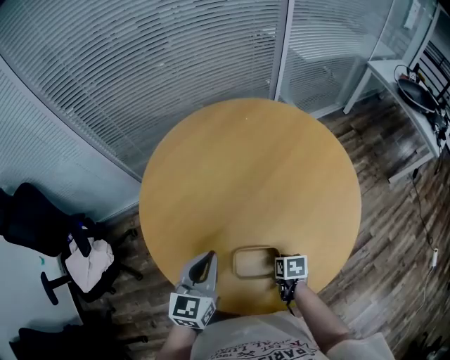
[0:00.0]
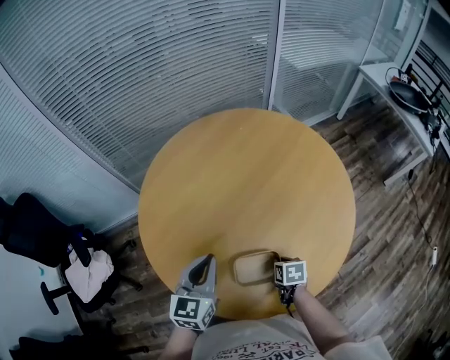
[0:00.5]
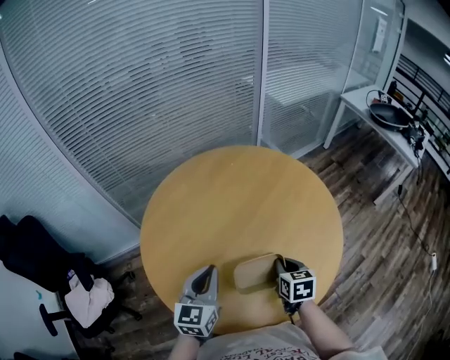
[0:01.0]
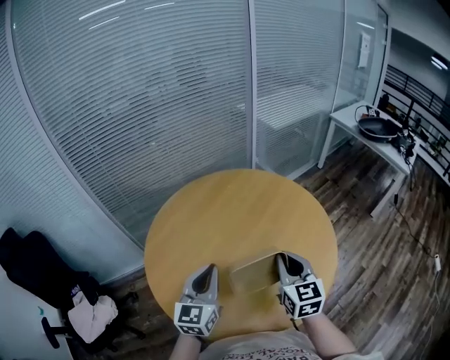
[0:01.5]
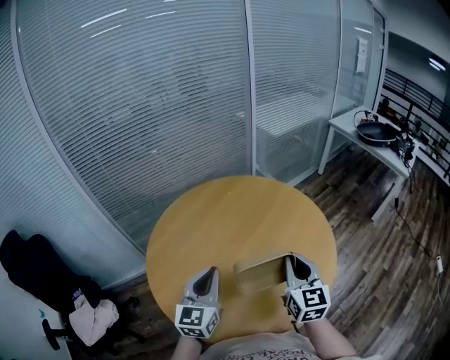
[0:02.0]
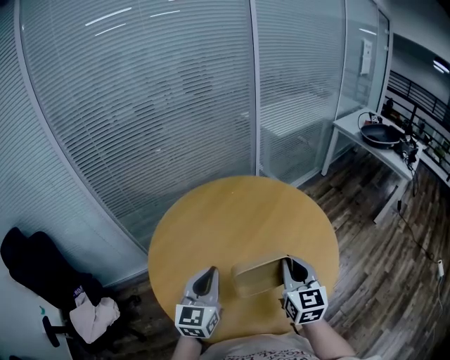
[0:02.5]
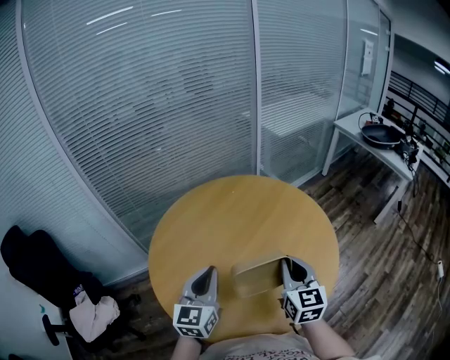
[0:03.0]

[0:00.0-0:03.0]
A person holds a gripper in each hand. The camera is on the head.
0:00.0 to 0:01.5: The left gripper heads upward, covering approximately 10 cm. Meanwhile the right gripper is displaced upward by about 35 cm, and tilts its fingers approximately 50 degrees upward.
0:01.5 to 0:03.0: The grippers stay close to where they were, moving slightly.

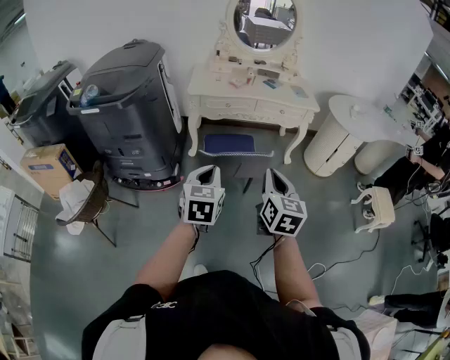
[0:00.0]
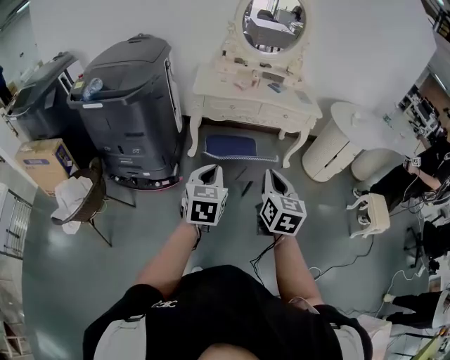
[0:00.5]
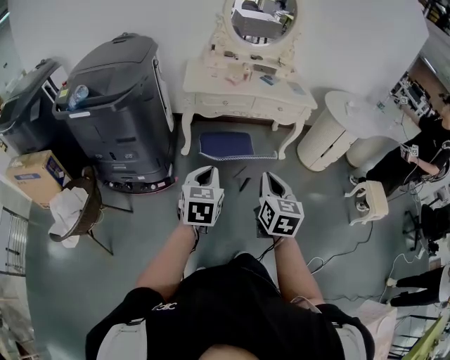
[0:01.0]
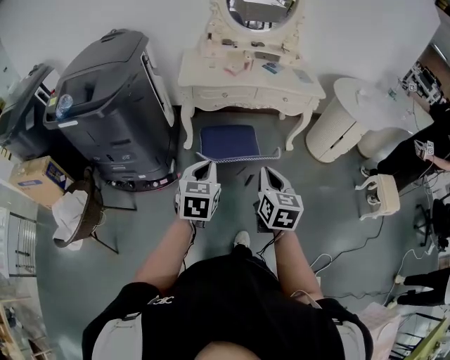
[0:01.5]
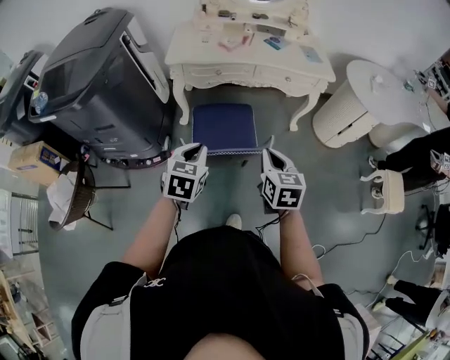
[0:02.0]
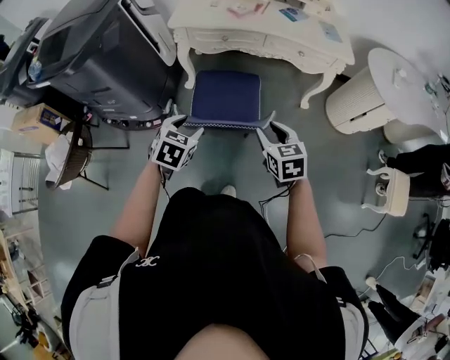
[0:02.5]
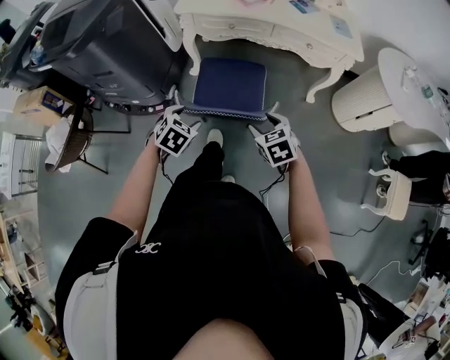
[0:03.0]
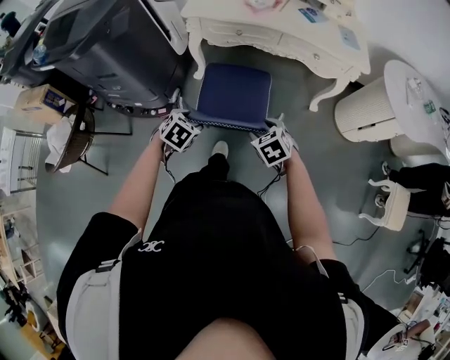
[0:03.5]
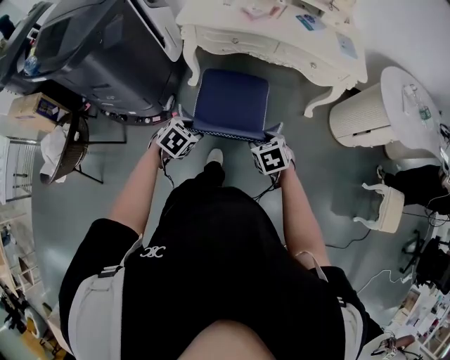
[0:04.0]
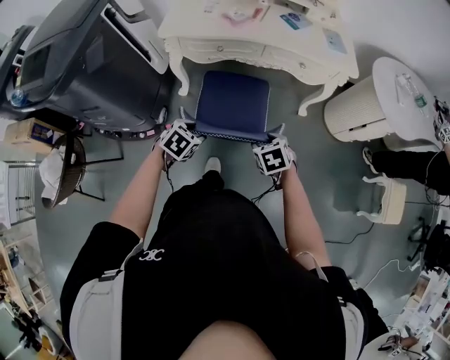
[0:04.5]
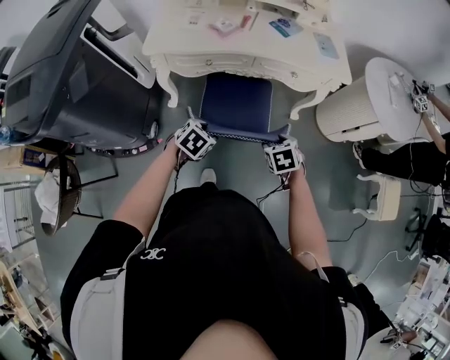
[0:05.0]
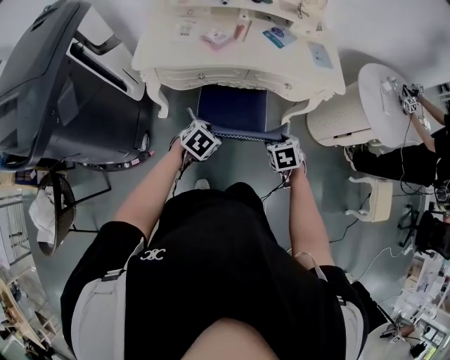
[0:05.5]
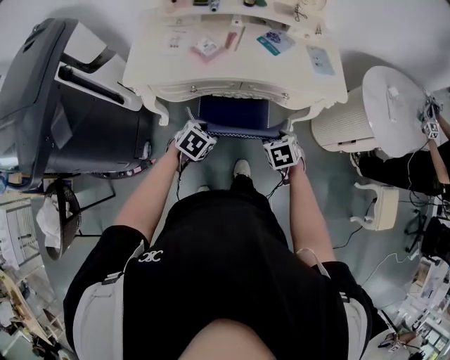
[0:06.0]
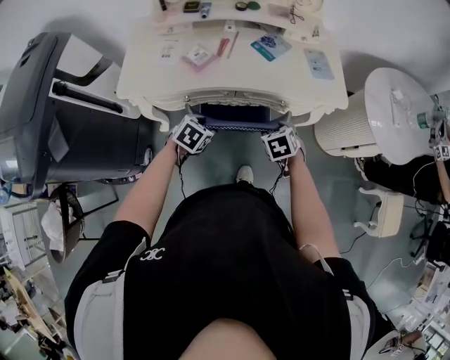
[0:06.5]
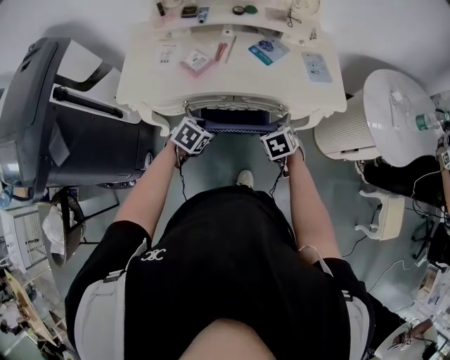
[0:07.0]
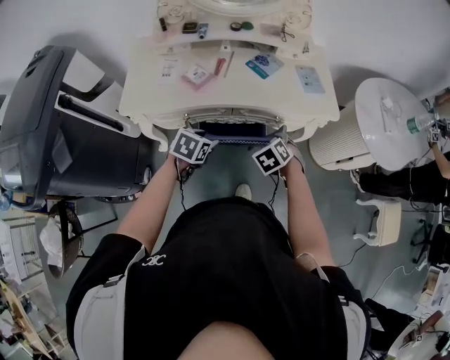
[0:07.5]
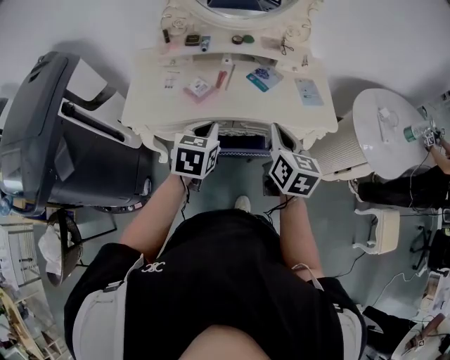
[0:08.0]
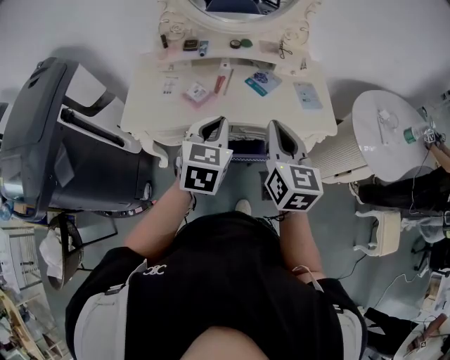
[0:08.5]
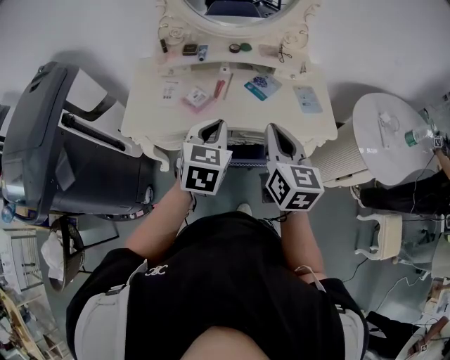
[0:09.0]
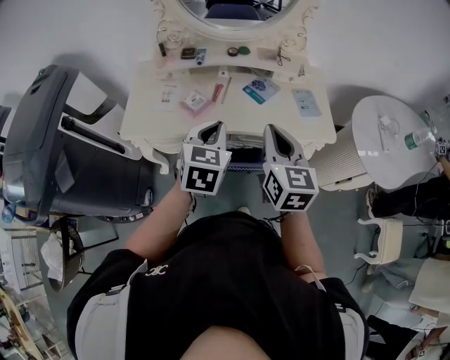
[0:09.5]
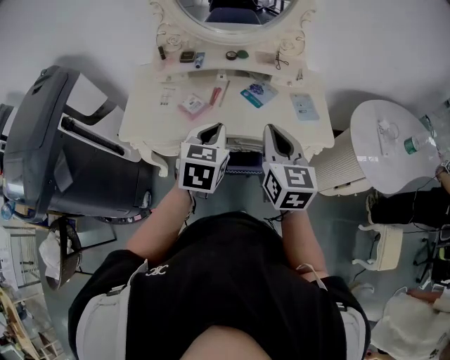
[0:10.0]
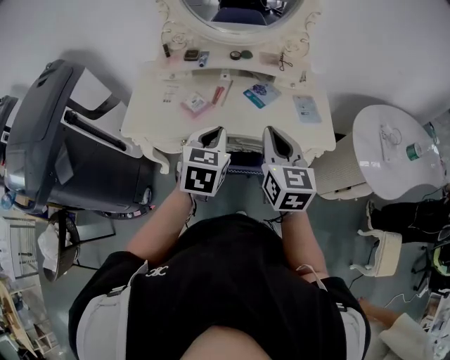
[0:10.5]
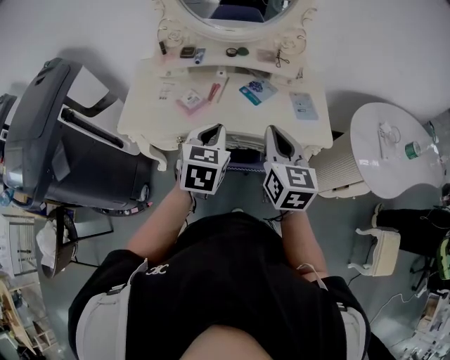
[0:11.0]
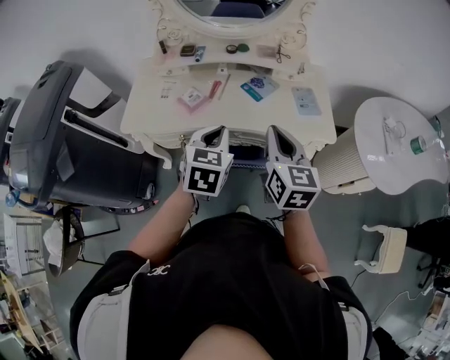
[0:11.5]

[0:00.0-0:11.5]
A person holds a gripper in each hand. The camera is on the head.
0:00.0 to 0:02.0: Both grippers move forward and downward, about 25 cm.
0:02.0 to 0:04.0: The left gripper goes approximately 15 cm downward, changes its angle by approximately 30 degrees, and opens up. Meanwhile the right gripper moves downward and forward, some 20 cm, rotates approximately 40 degrees, and opens.
0:04.0 to 0:06.0: The two grippers go some 30 cm forward.
0:06.0 to 0:07.5: The grippers both shift forward by some 5 cm.
0:07.5 to 0:09.5: The grippers both shift upward by some 25 cm. The right gripper tilts its fingers about 50 degrees upward, and closes. The left gripper changes its angle by approximately 30 degrees, and closes up.
0:09.5 to 0:11.5: There are only small adjustments of the grippers.

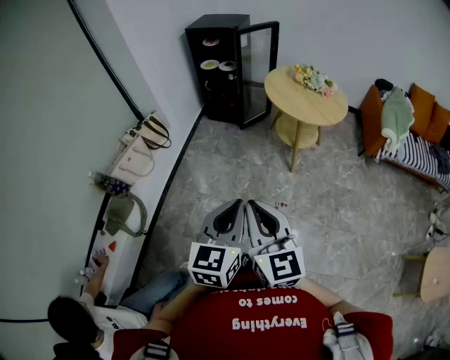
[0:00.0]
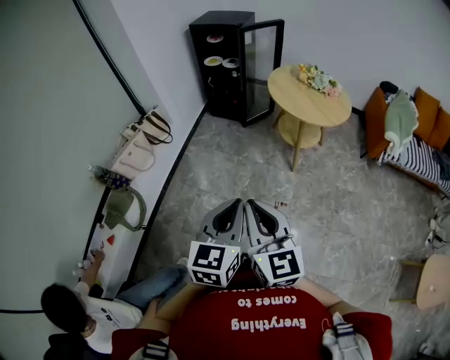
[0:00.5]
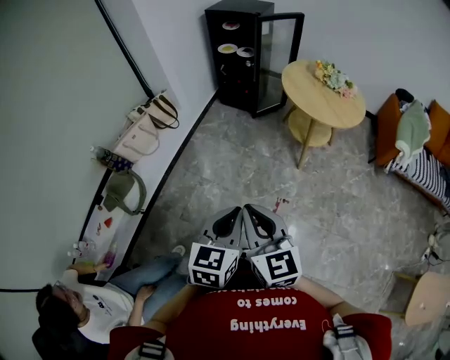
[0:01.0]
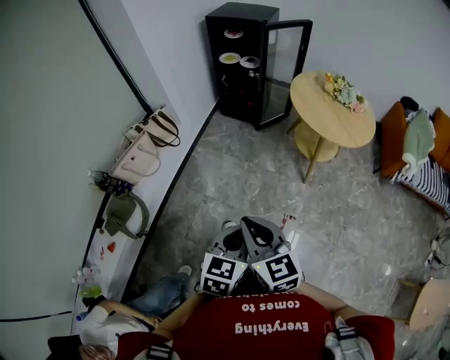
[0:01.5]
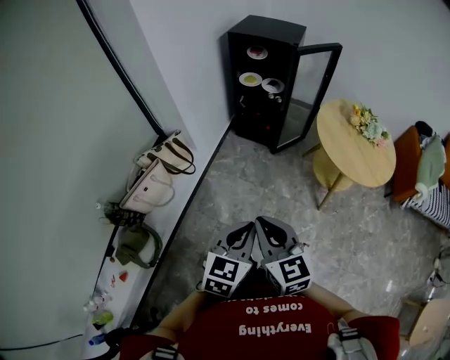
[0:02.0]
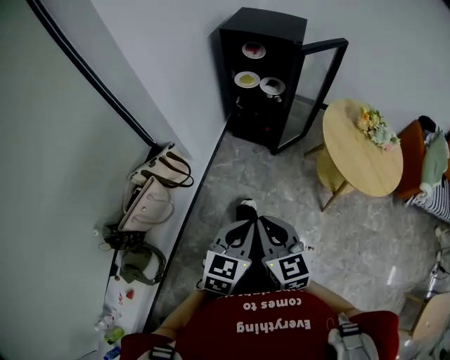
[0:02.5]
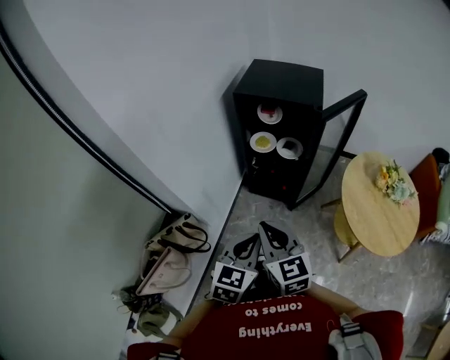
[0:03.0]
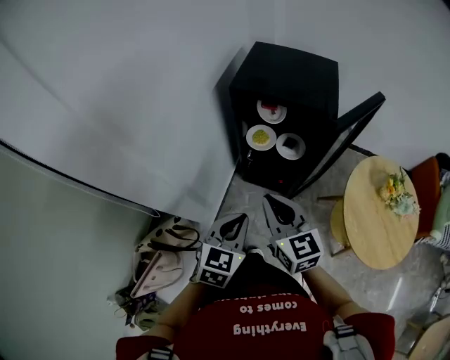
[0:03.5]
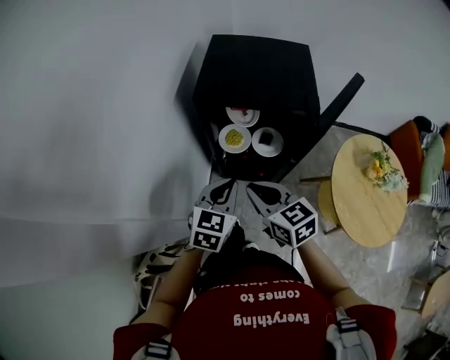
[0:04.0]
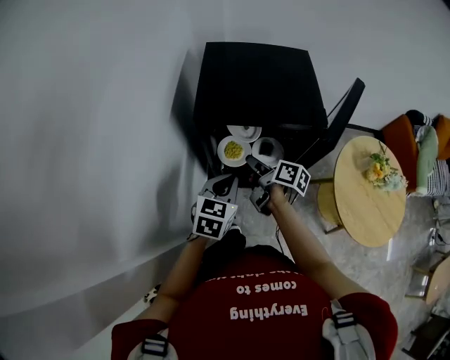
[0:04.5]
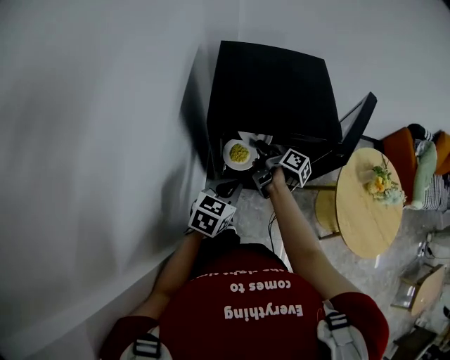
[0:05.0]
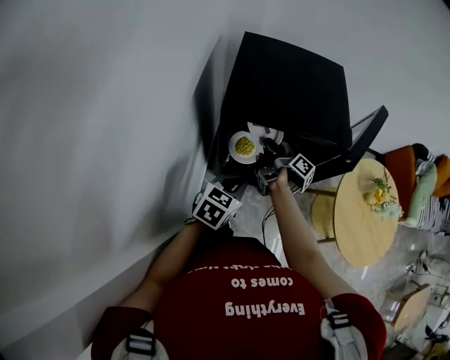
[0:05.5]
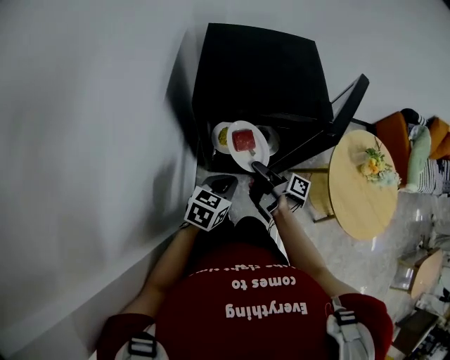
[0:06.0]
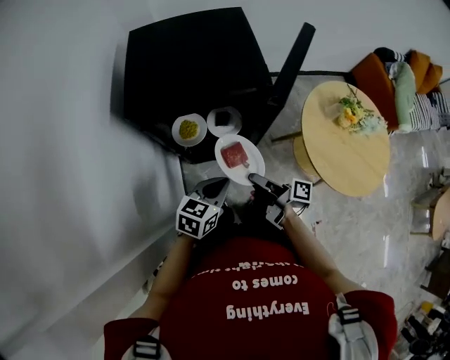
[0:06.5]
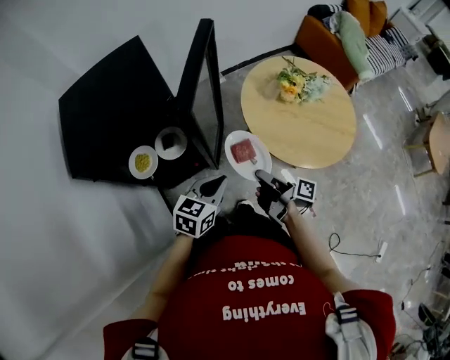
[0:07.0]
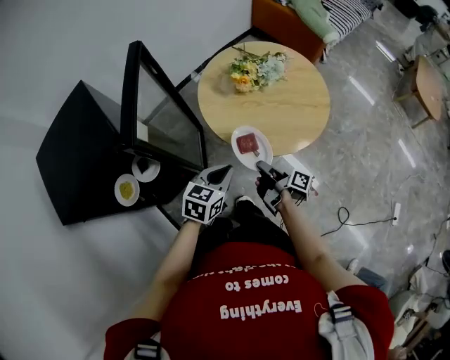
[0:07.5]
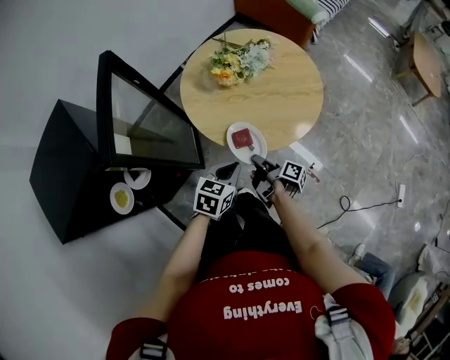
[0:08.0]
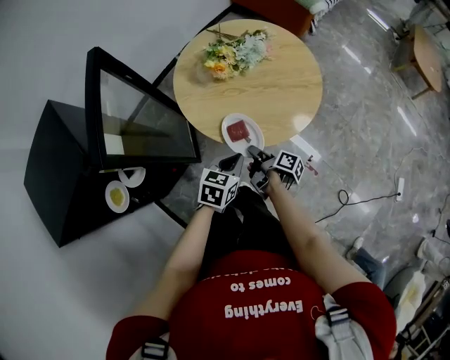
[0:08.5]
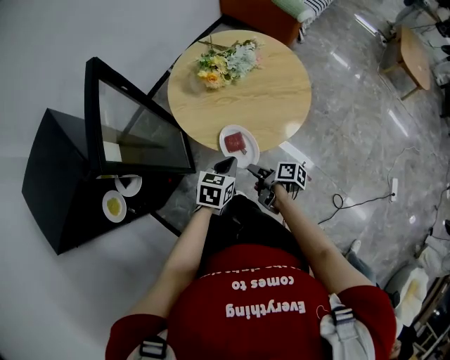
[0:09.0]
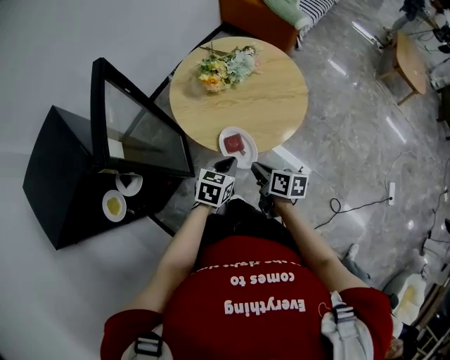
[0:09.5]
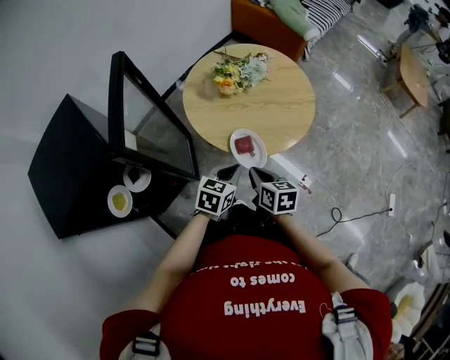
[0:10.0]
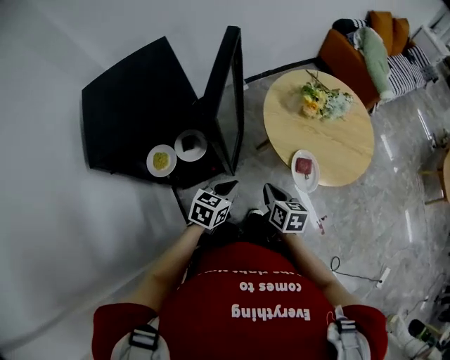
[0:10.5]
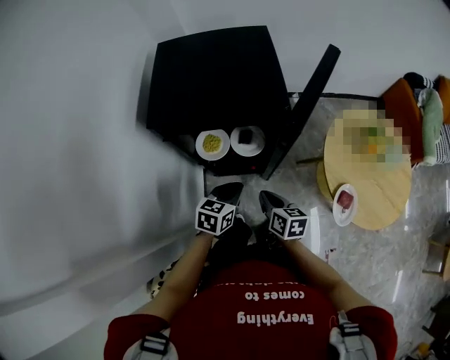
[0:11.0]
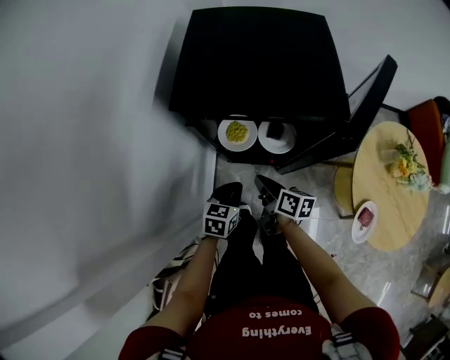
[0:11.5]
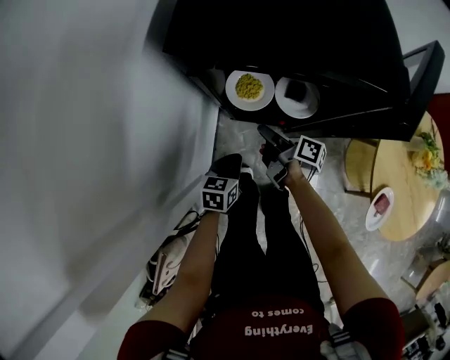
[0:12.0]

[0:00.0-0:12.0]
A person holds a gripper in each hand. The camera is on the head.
0:00.0 to 0:02.0: The left gripper ends up some 35 cm from where it was.
0:02.0 to 0:04.0: The left gripper changes place by some 70 cm.
0:04.0 to 0:06.0: The left gripper heads downward, covering roughly 10 cm, and rotates some 20 degrees.
0:06.0 to 0:08.0: The left gripper changes place by approximately 50 cm, and turns by some 50 degrees.
0:10.0 to 0:12.0: The left gripper changes place by some 50 cm, and turns by approximately 70 degrees.
